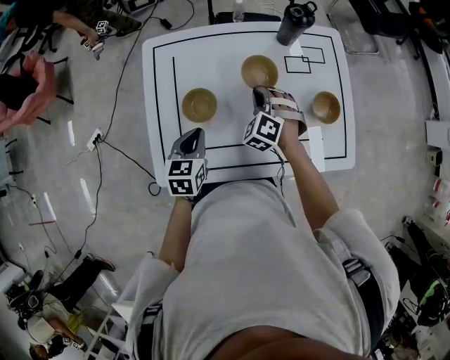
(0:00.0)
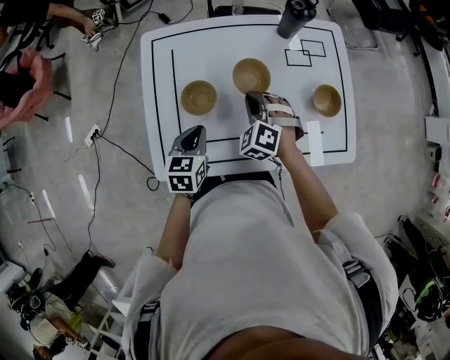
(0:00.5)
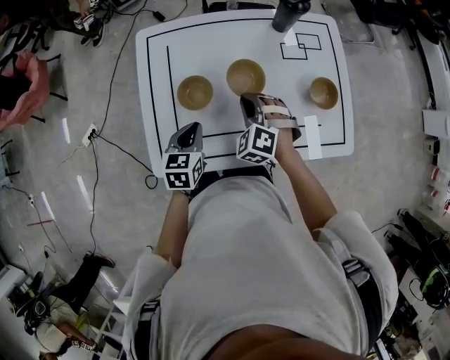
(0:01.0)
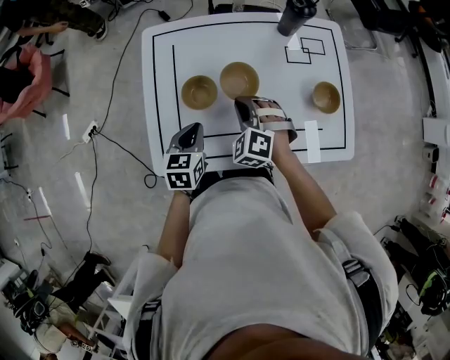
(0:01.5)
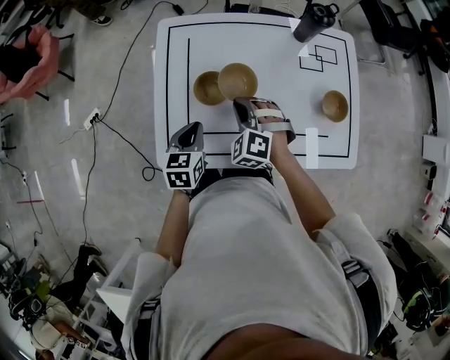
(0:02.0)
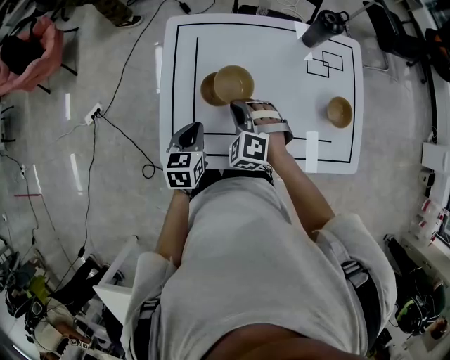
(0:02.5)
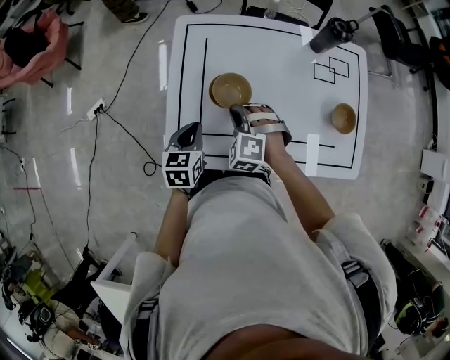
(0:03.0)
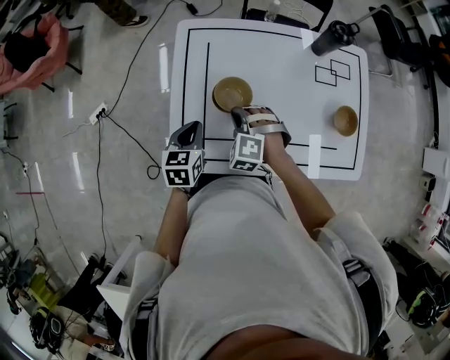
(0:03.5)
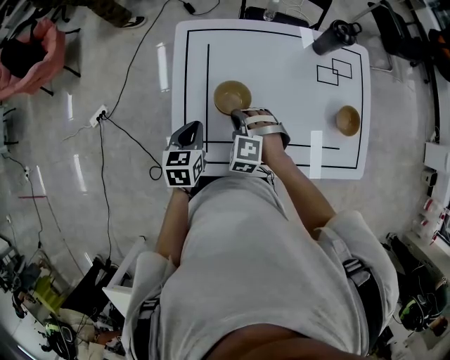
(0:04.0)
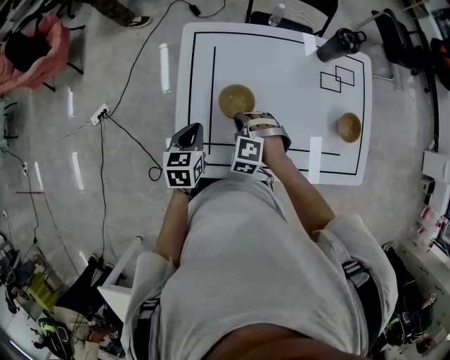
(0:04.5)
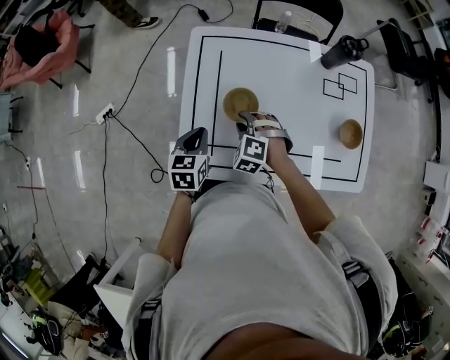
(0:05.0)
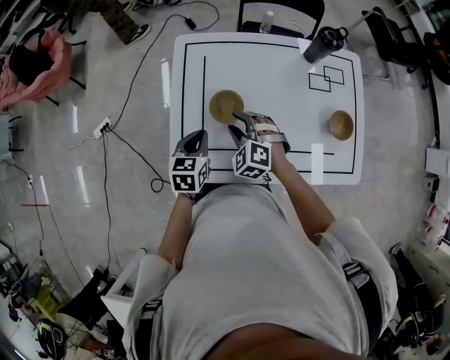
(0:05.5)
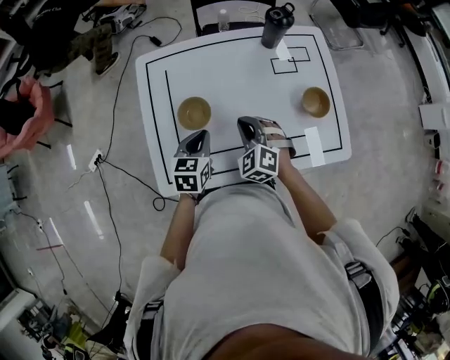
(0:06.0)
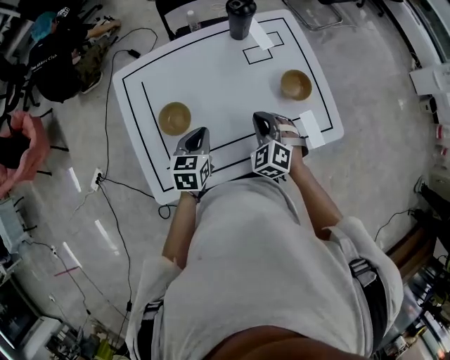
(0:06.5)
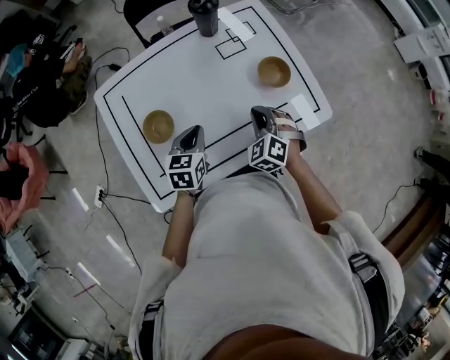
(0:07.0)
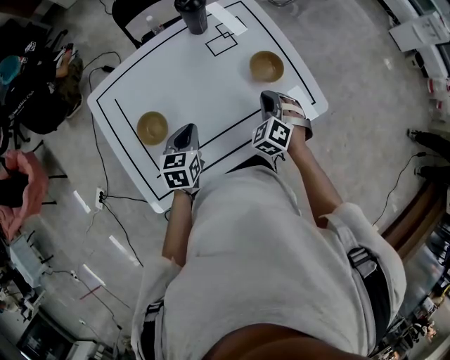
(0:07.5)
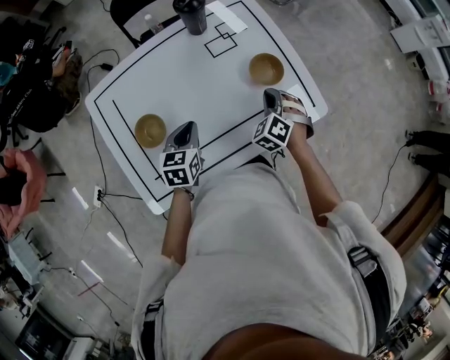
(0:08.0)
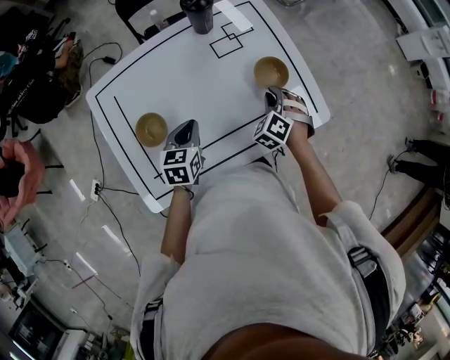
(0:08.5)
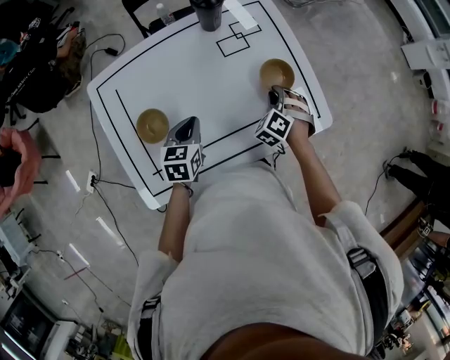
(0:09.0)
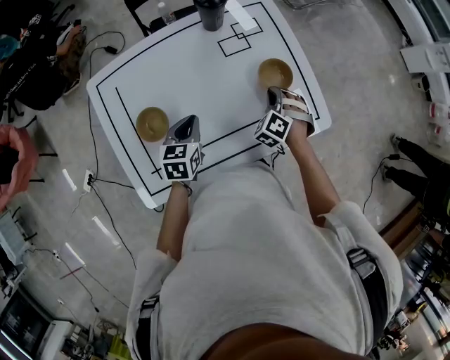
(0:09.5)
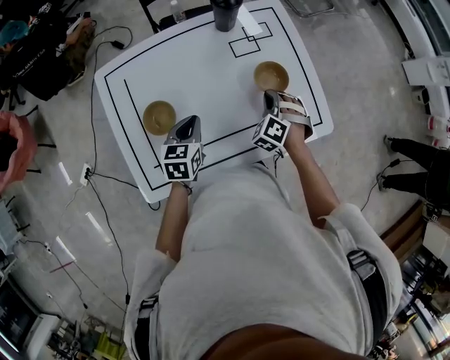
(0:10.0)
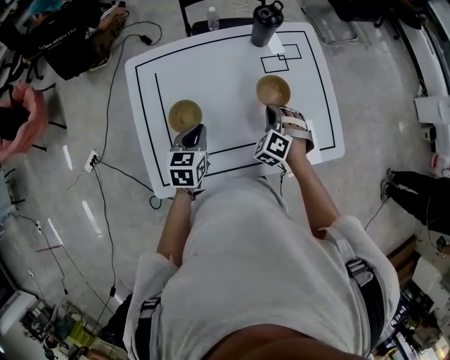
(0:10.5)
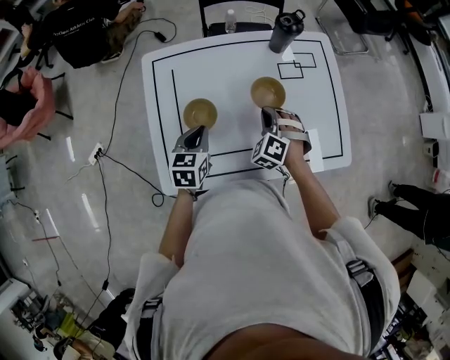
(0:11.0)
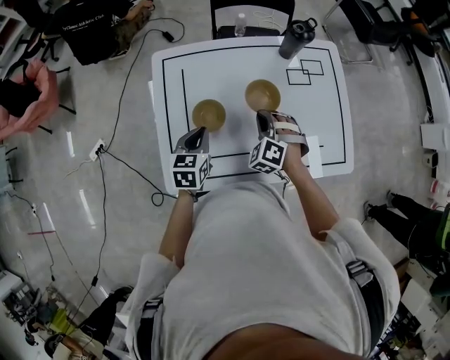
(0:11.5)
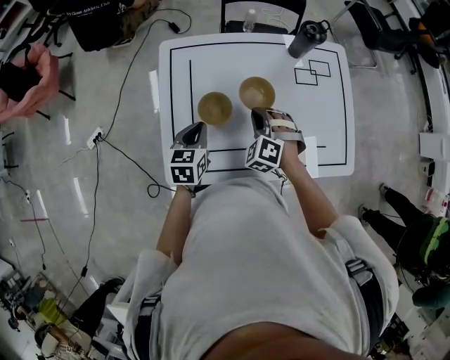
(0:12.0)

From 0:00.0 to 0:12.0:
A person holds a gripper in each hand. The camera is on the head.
From 0:00.0 to 0:02.0: The left gripper shifts by approximately 5 cm, while the right gripper travels to the left and backward by about 15 cm.
From 0:02.0 to 0:04.0: The two grippers go about 5 cm to the left.
From 0:04.0 to 0:06.0: The grippers both shift to the right by about 15 cm. The right gripper turns by some 30 degrees, and opens and closes again.
From 0:06.0 to 0:08.0: The right gripper moves some 25 cm, and turns by some 30 degrees. Meanwhile the left gripper shifts by roughly 15 cm.
From 0:08.0 to 0:10.0: The right gripper travels to the left by some 5 cm.
From 0:10.0 to 0:12.0: Both grippers move to the left, approximately 20 cm. The right gripper rotates approximately 30 degrees.

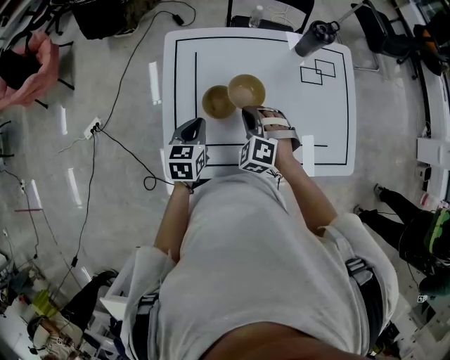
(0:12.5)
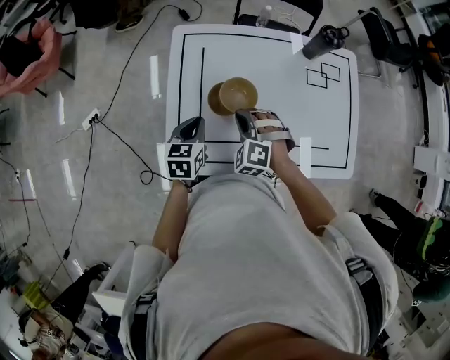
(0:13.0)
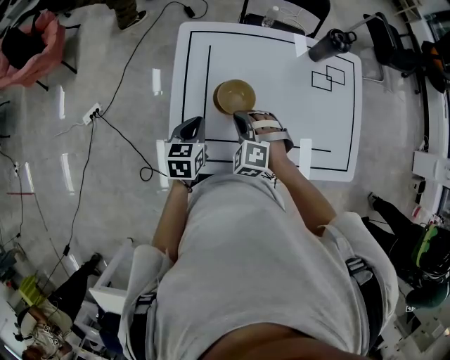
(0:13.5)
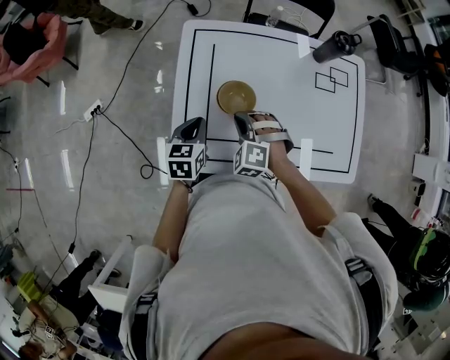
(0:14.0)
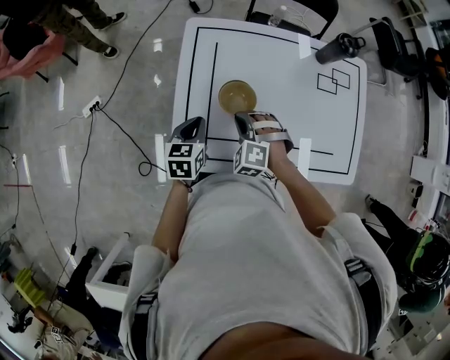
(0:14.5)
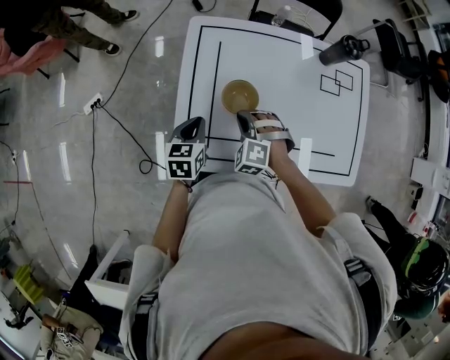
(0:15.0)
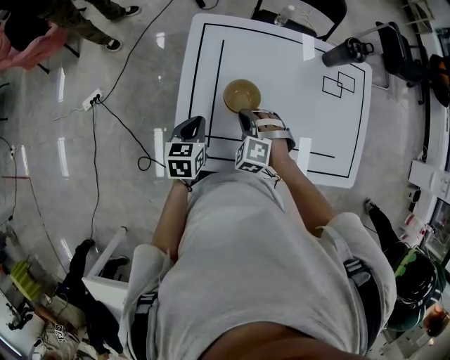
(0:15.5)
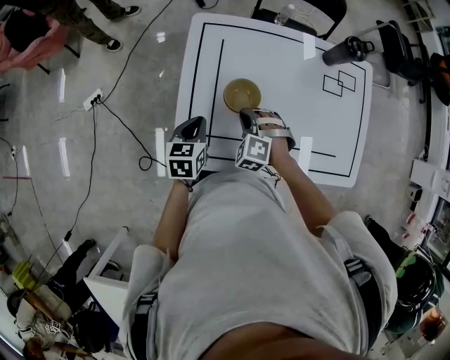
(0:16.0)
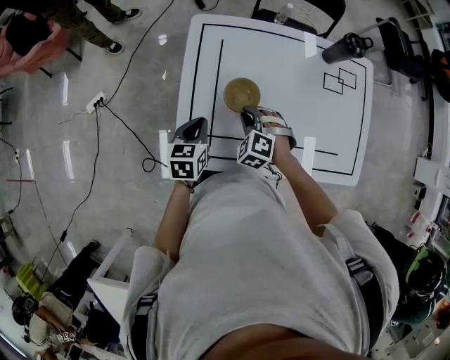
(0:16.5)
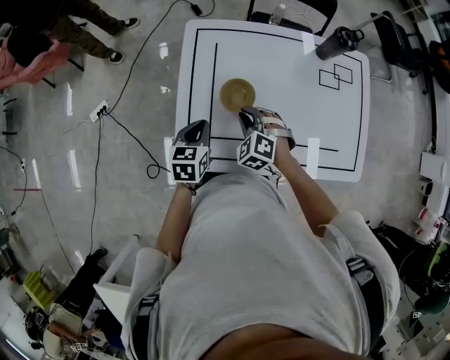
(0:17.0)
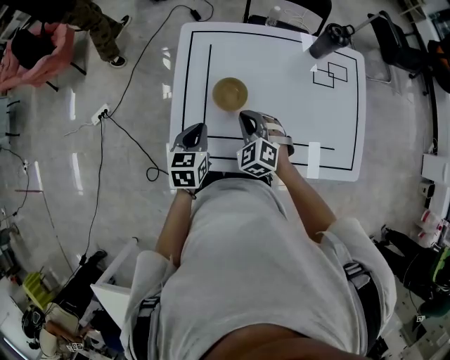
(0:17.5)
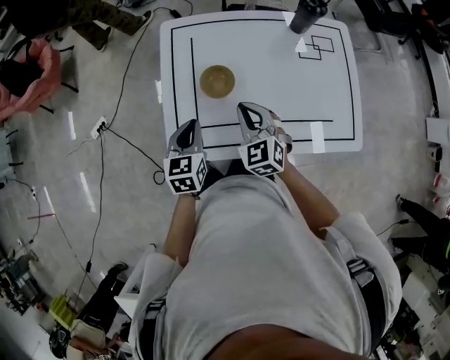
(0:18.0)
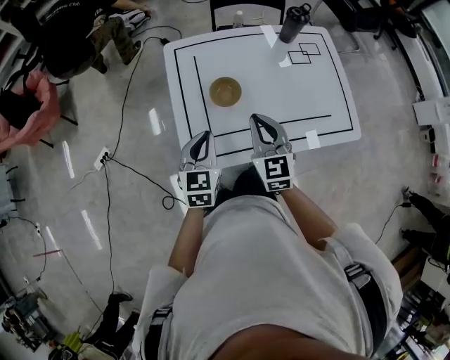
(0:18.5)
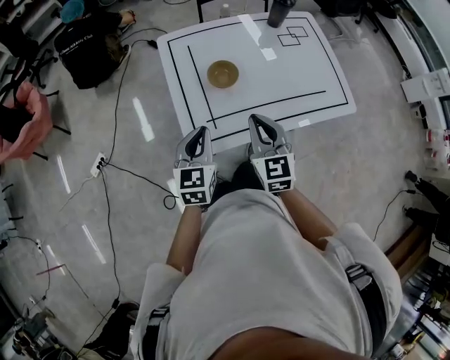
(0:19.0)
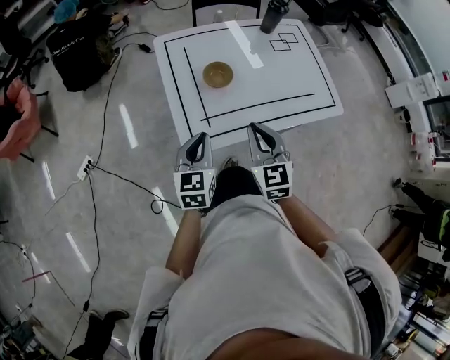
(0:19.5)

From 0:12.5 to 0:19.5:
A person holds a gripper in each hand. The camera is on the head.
From 0:12.5 to 0:14.5: Both grippers move to the left, roughly 5 cm.
From 0:14.5 to 0:16.0: The grippers stay close to where they were, moving slightly.
From 0:16.0 to 0:17.5: The right gripper moves roughly 5 cm, and turns by some 20 degrees; the left gripper changes place by approximately 5 cm.
From 0:17.5 to 0:19.5: Both grippers travel together backward and upward, approximately 20 cm. The left gripper changes its angle by some 20 degrees. Meanwhile the right gripper swivels roughly 50 degrees.

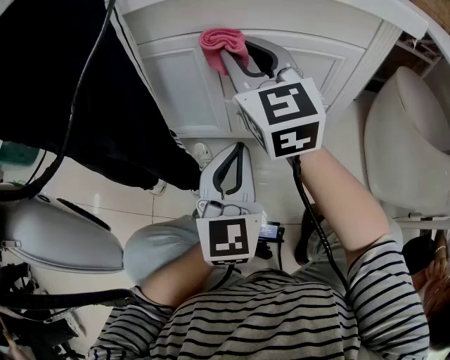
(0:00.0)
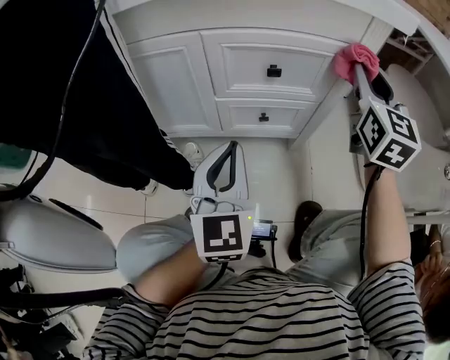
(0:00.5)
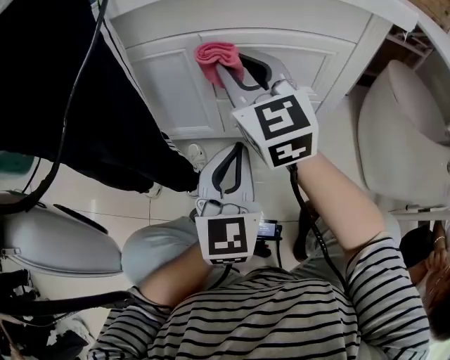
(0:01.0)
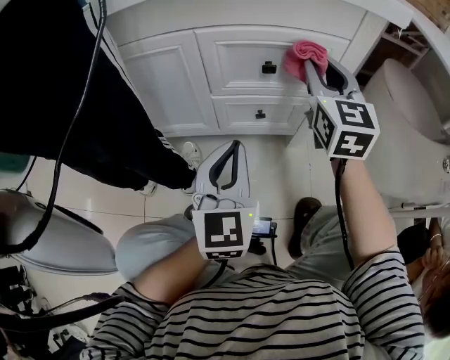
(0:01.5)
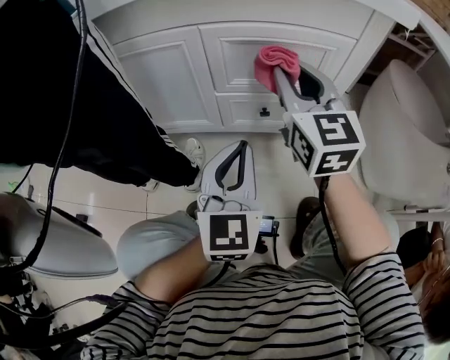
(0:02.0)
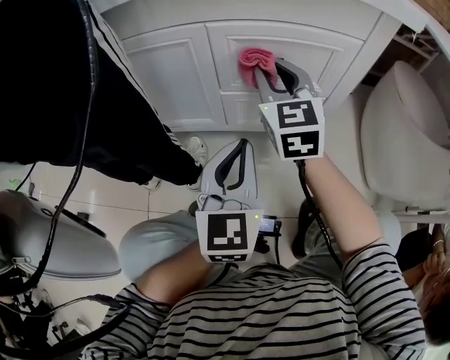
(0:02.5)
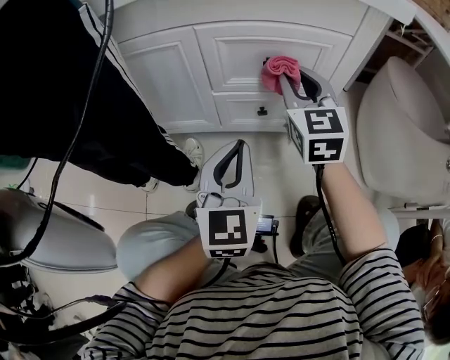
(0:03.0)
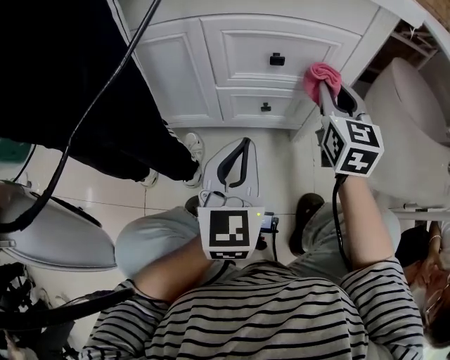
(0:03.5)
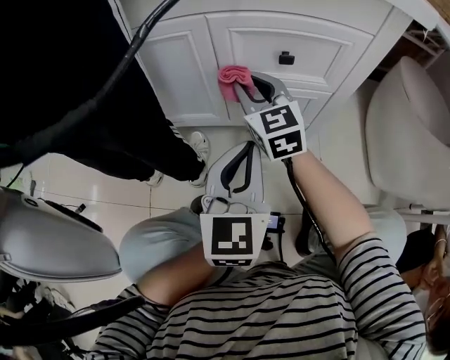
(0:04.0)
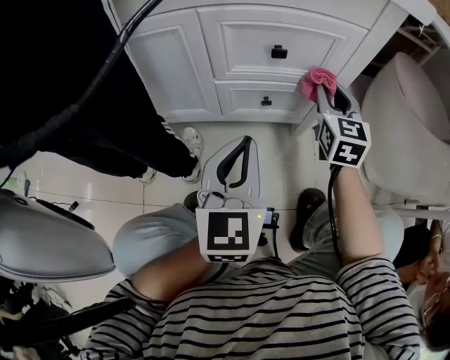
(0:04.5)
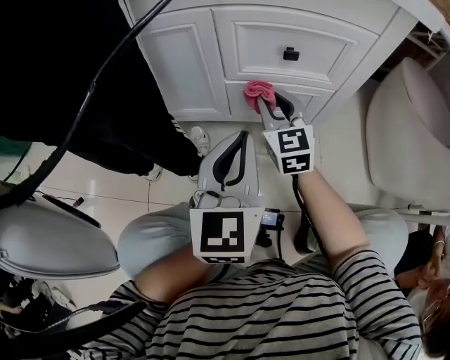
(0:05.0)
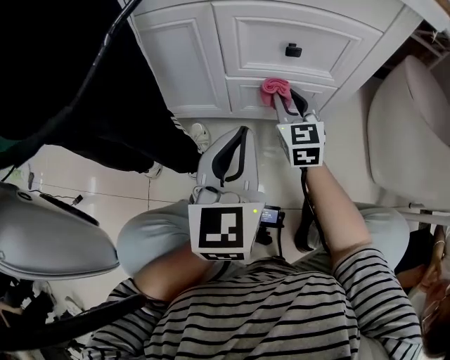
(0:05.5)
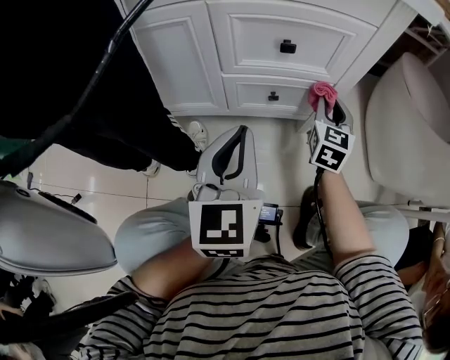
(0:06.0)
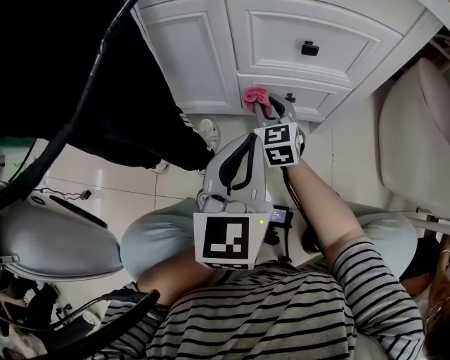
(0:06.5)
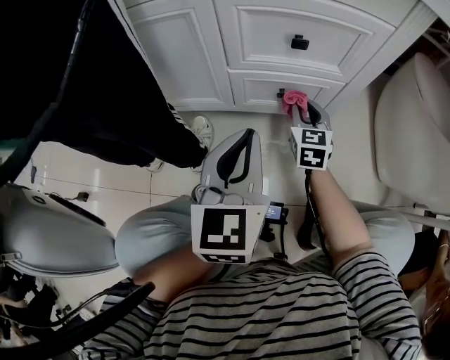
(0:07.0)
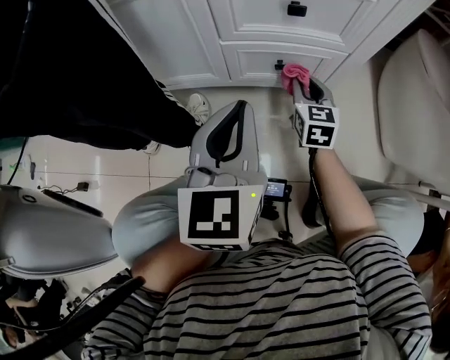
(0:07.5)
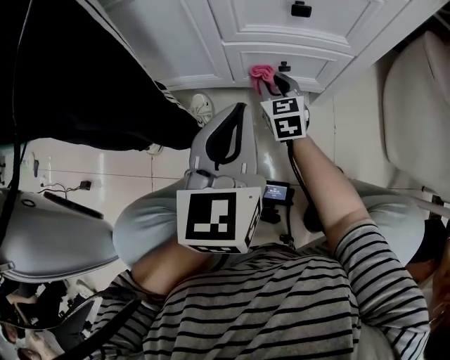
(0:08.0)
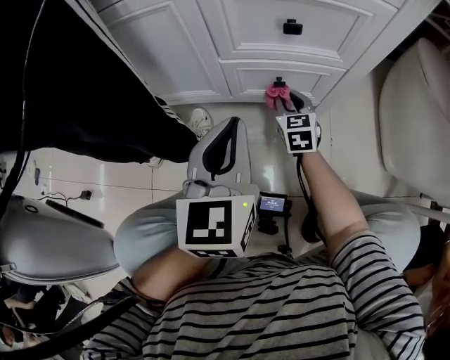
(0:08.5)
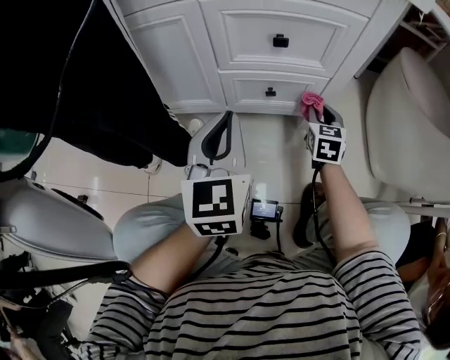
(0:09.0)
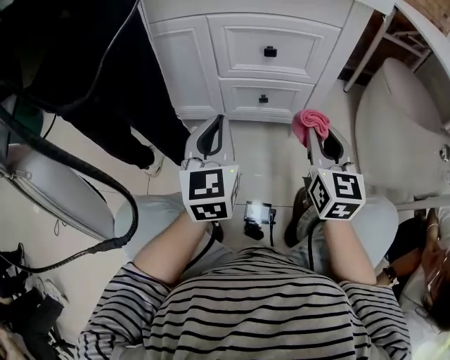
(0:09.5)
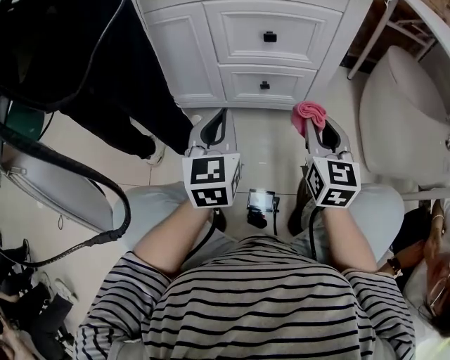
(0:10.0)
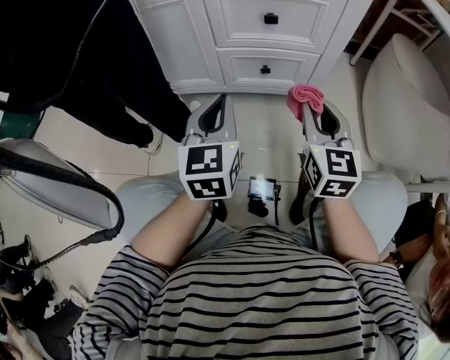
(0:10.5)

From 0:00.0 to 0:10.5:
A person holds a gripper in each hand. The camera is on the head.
From 0:00.0 to 0:02.0: The right gripper moves left and right over some 25 cm, changing direction 3 times.
From 0:02.0 to 0:04.0: The right gripper swings left and right, about 20 cm each way, with 2 reversals.
From 0:04.0 to 0:06.5: The right gripper swings left and right, some 20 cm each way, with 3 reversals.
From 0:06.5 to 0:08.5: The right gripper moves left and right over some 15 cm, changing direction 2 times.
From 0:08.5 to 0:10.5: The right gripper shifts approximately 30 cm upward and backward, and swivels about 20 degrees. Meanwhile the left gripper goes some 5 cm backward.
